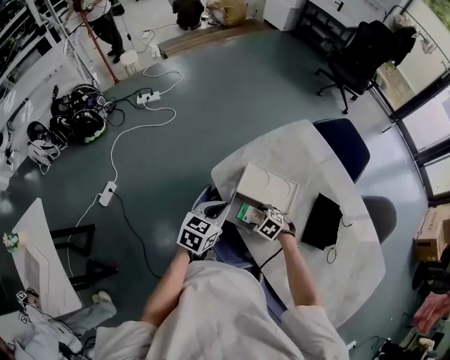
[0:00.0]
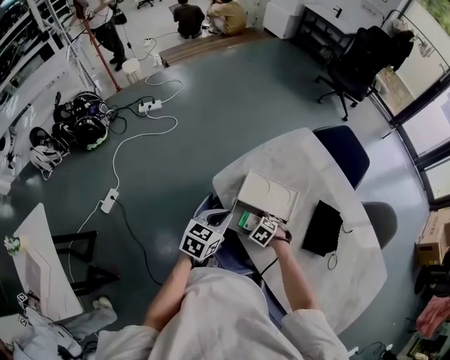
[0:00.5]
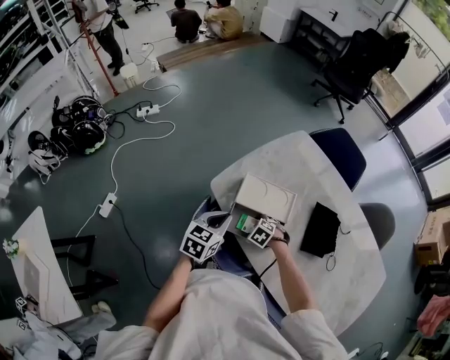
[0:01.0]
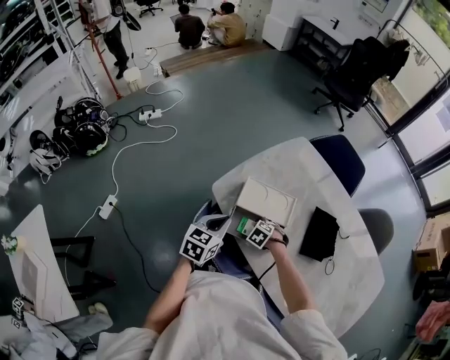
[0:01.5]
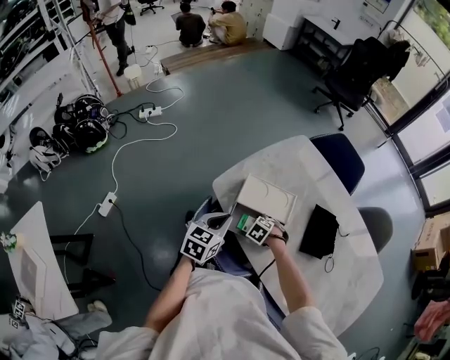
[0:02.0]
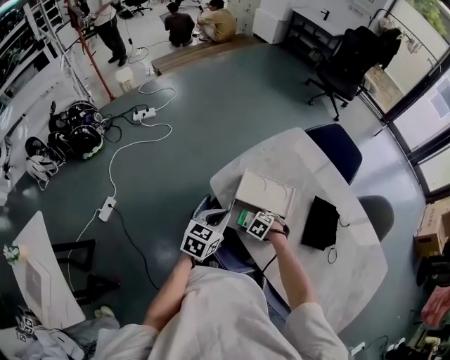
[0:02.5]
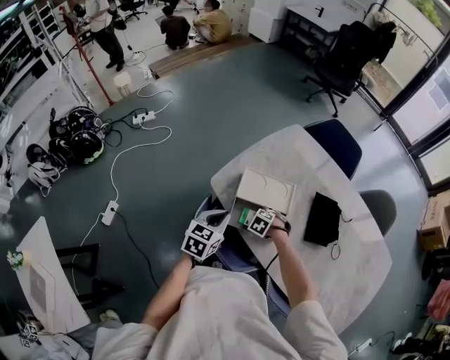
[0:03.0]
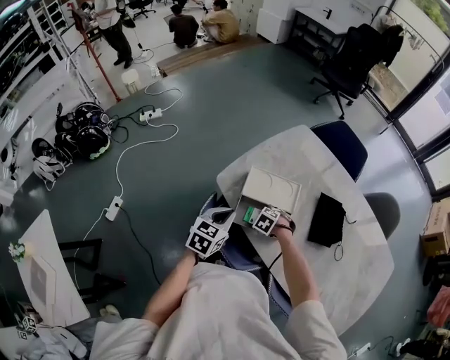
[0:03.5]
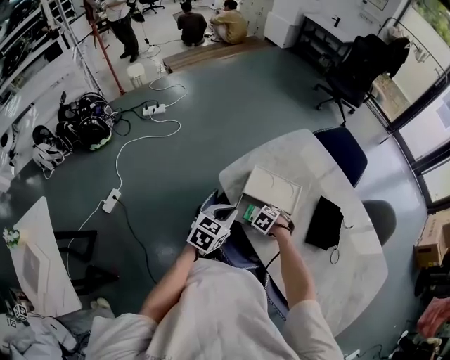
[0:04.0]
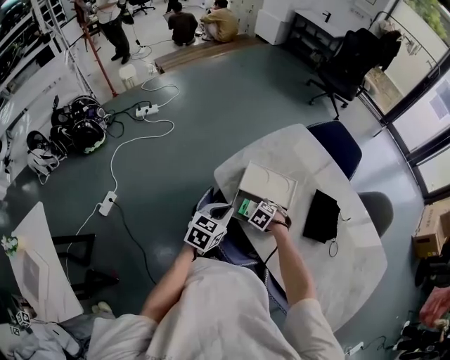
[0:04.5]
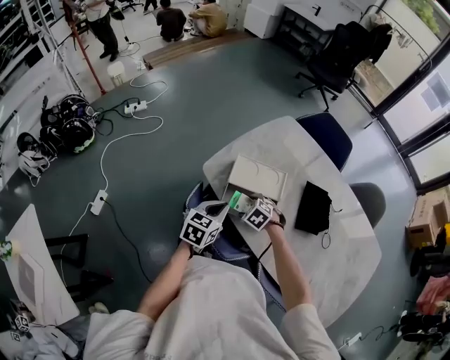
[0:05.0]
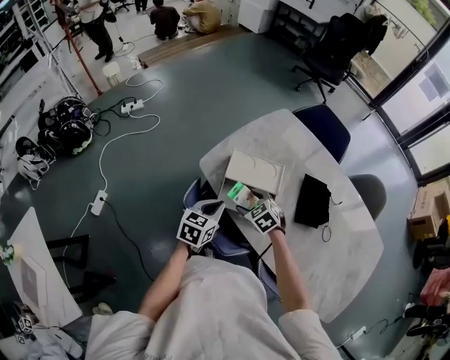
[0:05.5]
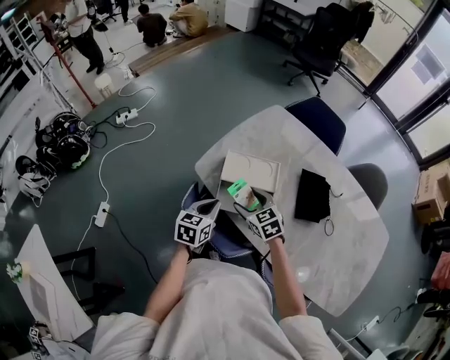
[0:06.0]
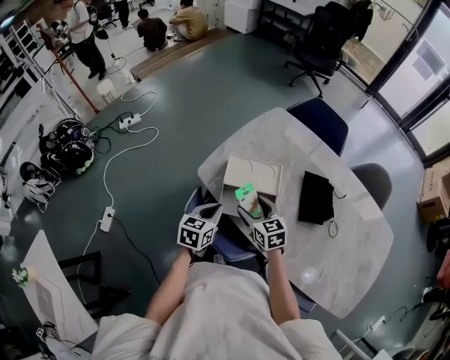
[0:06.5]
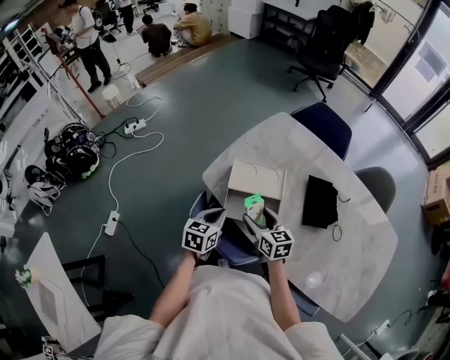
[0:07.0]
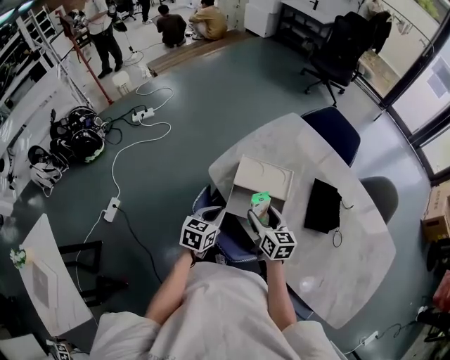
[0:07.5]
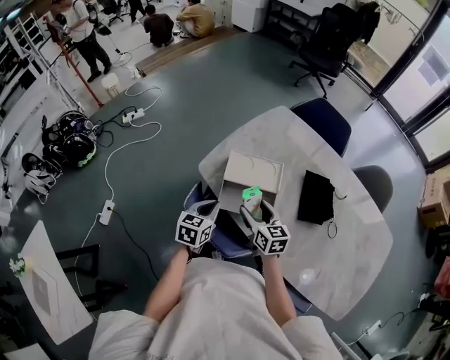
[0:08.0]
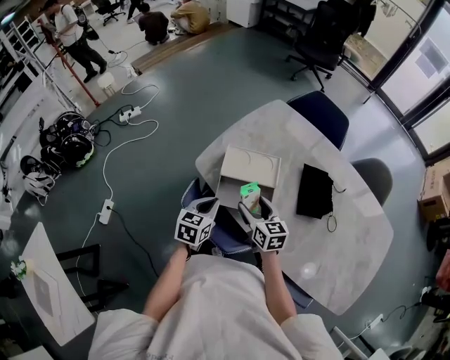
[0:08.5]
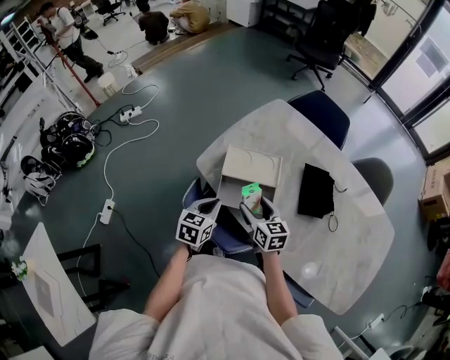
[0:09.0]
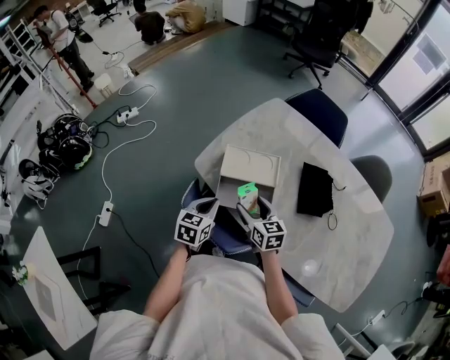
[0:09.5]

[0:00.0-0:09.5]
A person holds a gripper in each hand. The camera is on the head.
0:00.0 to 0:04.0: There are only small adjustments of the grippers.
0:04.0 to 0:05.5: The right gripper goes some 10 cm upward, and angles its fingers upward, by about 30 degrees.
0:05.5 to 0:07.5: The right gripper travels upward by some 5 cm, and tilts its fingers about 30 degrees upward.
0:07.5 to 0:09.5: There are only small adjustments of the grippers.

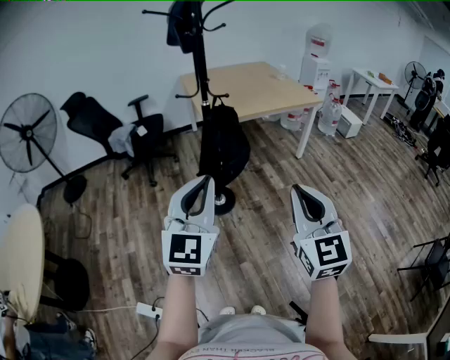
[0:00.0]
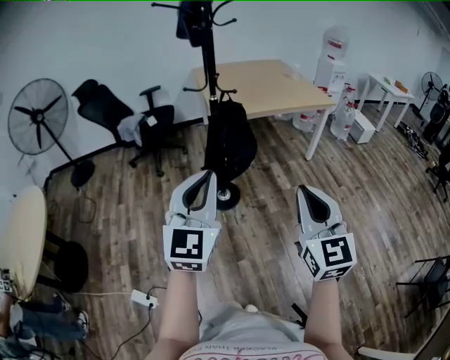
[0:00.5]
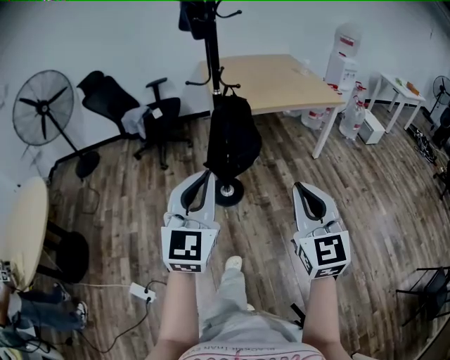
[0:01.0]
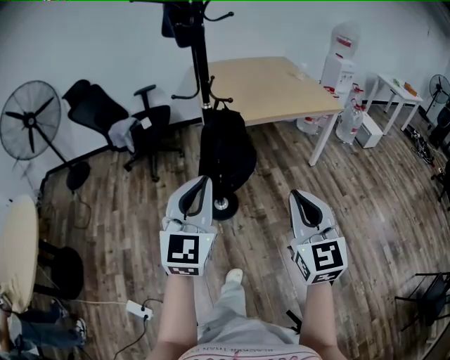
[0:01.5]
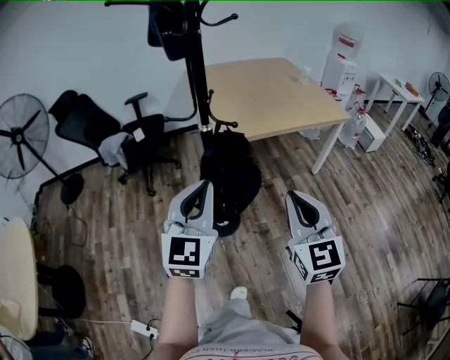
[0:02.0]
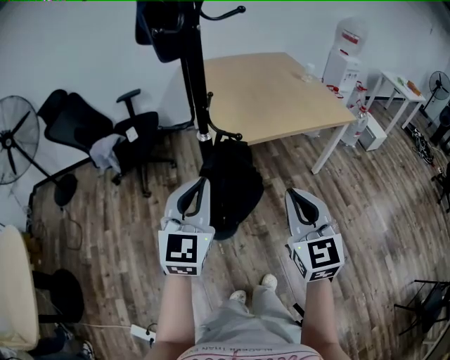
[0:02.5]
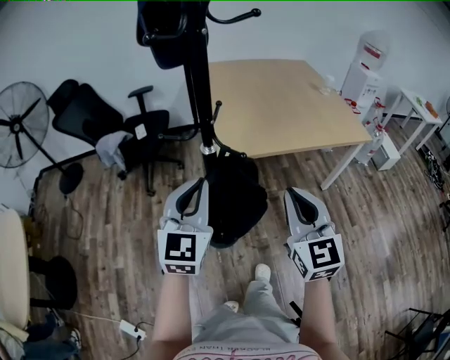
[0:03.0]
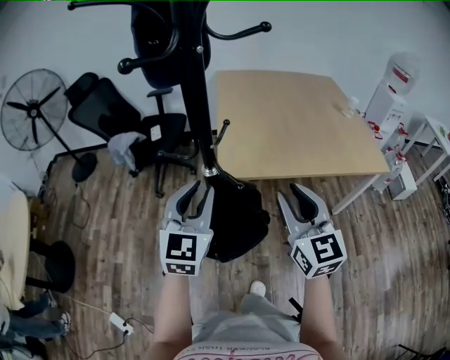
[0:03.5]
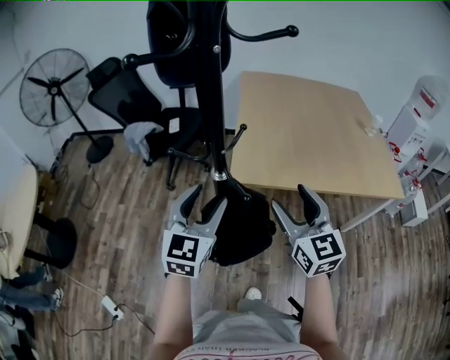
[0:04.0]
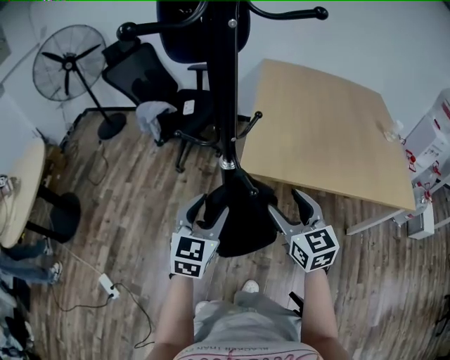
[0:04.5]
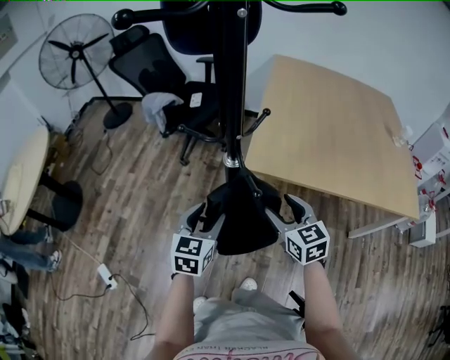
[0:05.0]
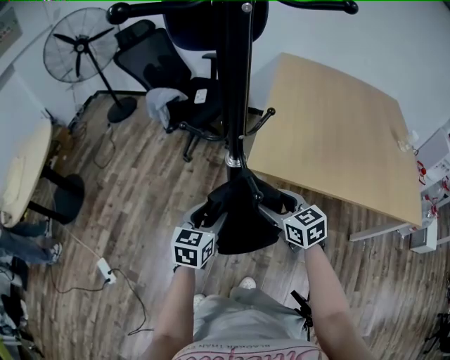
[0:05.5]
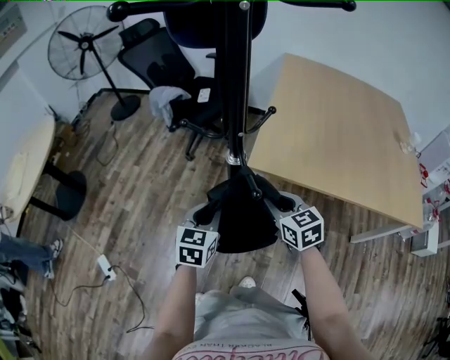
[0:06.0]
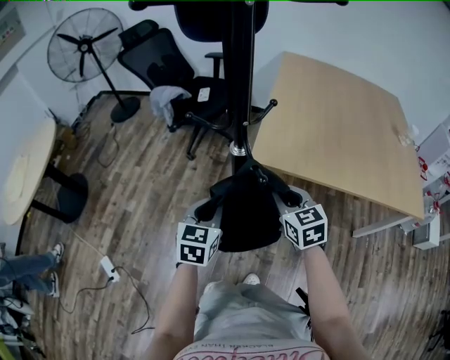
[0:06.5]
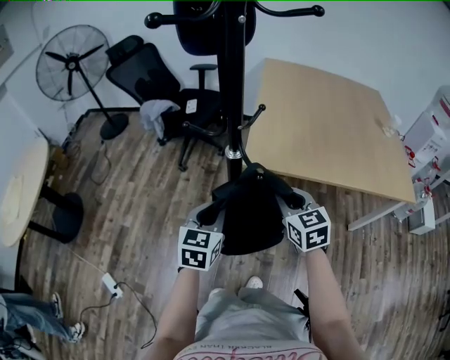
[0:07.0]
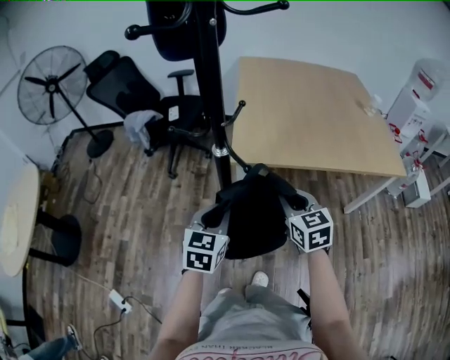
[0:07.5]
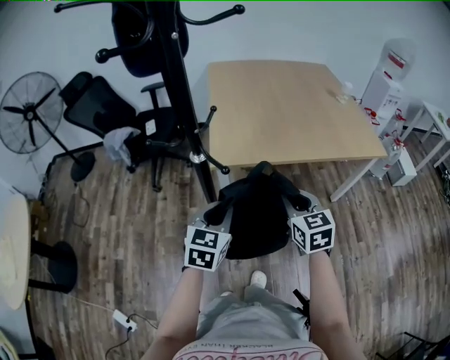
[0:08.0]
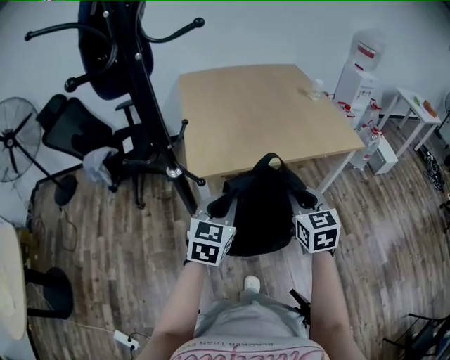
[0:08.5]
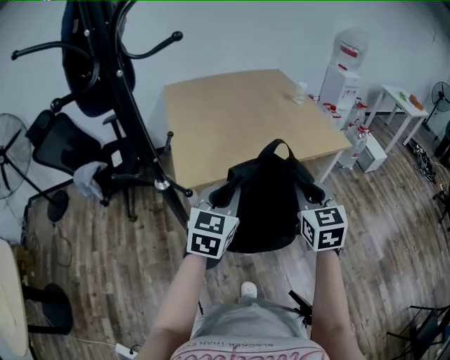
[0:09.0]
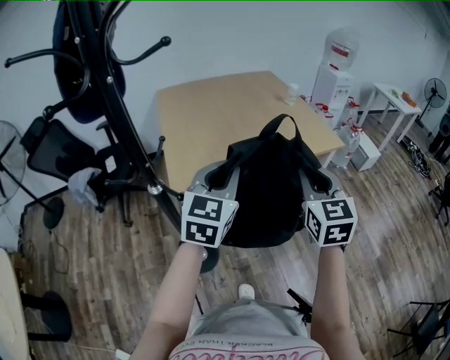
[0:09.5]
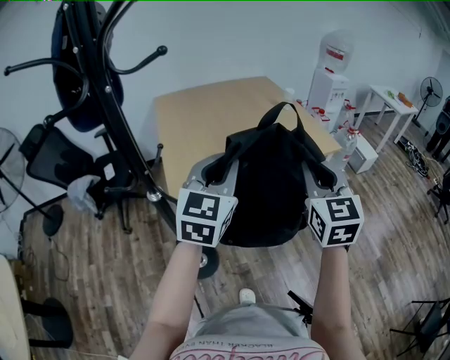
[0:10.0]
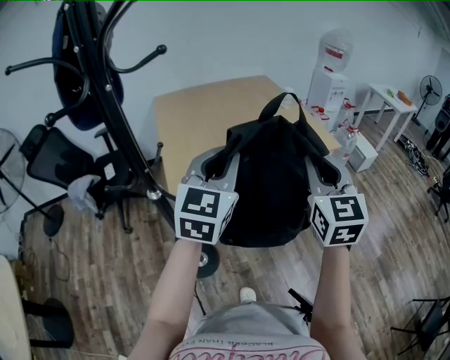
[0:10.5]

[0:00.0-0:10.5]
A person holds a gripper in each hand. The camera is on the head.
0:00.0 to 0:02.0: Both grippers travel together forward, approximately 30 cm.
0:02.0 to 0:04.0: The two grippers go roughly 25 cm forward. The left gripper turns by approximately 20 degrees, and opens. Meanwhile the right gripper changes its angle by roughly 30 degrees, and opens up.
0:04.0 to 0:06.5: Both grippers travel together downward, roughly 15 cm. The right gripper rotates roughly 30 degrees, and closes its fingers, while the left gripper changes its angle by about 30 degrees, and closes up.
0:06.5 to 0:08.5: The right gripper moves about 25 cm, and turns by some 40 degrees; the left gripper ends up about 20 cm from where it was, and turns by roughly 40 degrees.
0:08.5 to 0:10.5: The two grippers go approximately 20 cm upward. The right gripper turns by approximately 20 degrees, while the left gripper turns by about 20 degrees.

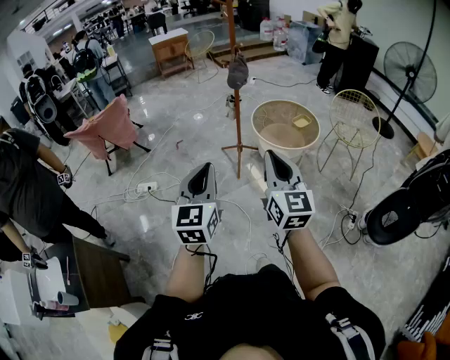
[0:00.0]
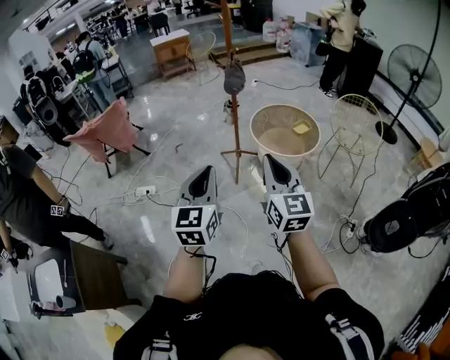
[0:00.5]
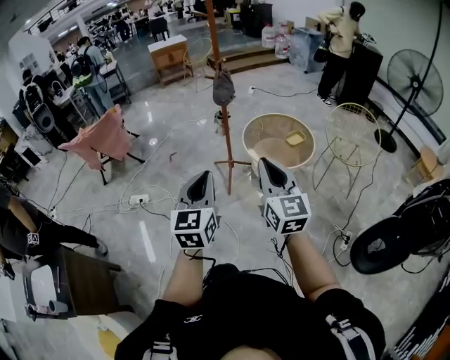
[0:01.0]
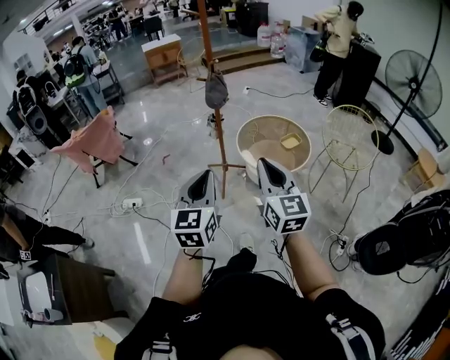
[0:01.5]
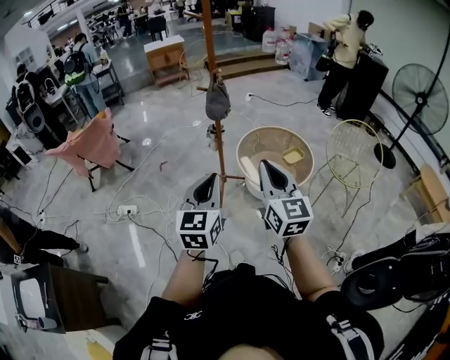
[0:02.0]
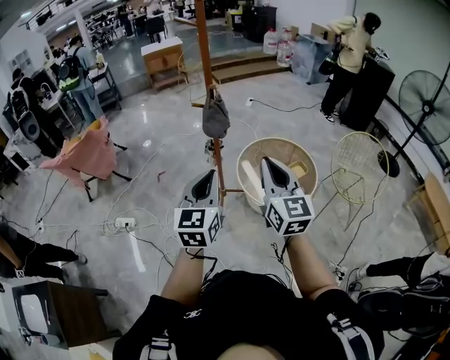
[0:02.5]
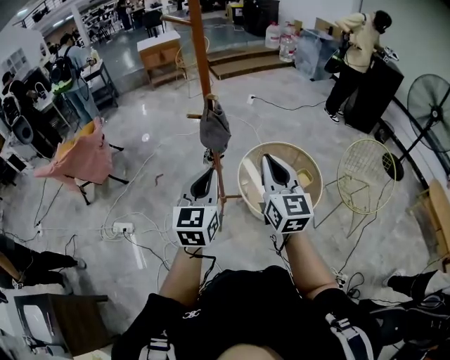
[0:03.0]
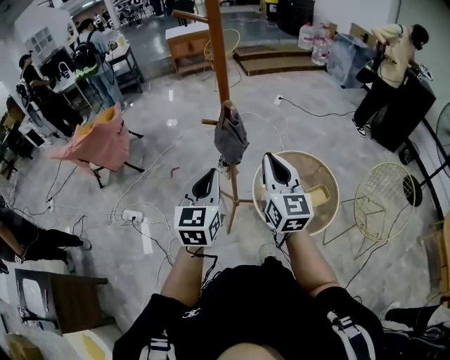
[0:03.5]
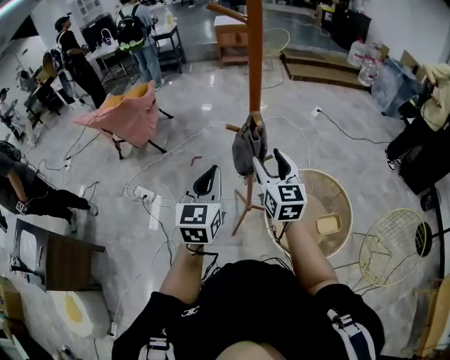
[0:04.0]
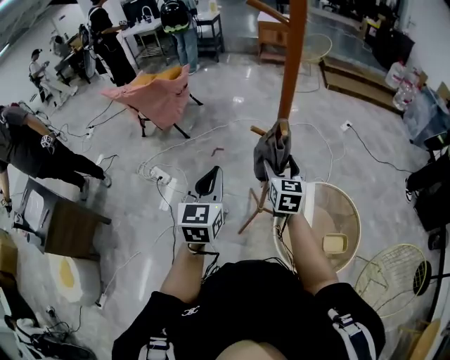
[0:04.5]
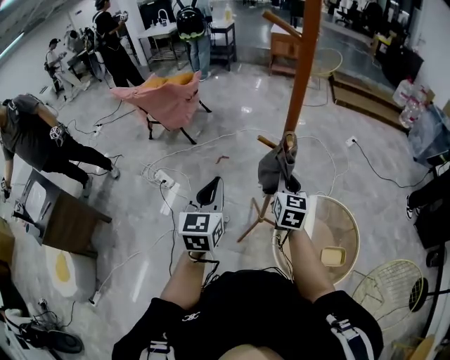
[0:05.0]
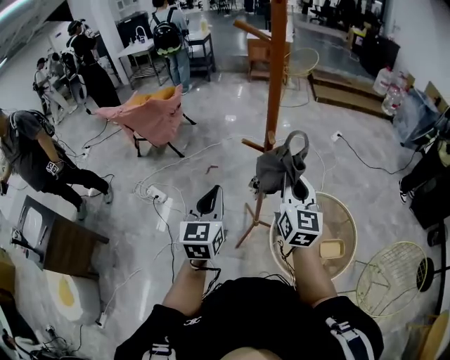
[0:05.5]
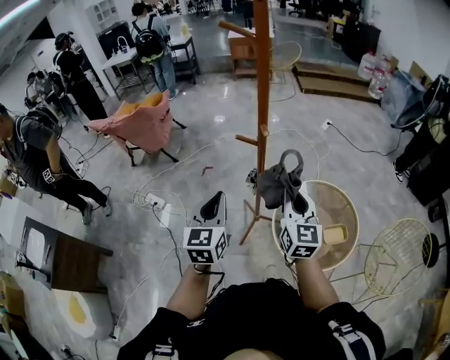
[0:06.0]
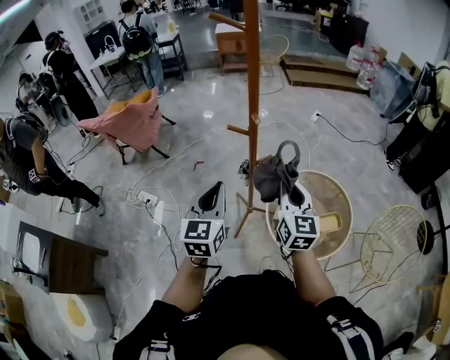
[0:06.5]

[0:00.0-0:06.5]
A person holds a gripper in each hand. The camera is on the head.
0:00.0 to 0:02.0: The two grippers travel together, forward and to the right, about 40 cm.
0:02.0 to 0:04.5: The pair of grippers is taken about 60 cm. The right gripper rotates roughly 30 degrees, and opens its fingers. Meanwhile the left gripper rotates some 40 degrees.
0:04.5 to 0:06.5: The left gripper is displaced backward and to the right by some 10 cm. The right gripper shifts roughly 20 cm backward, upward and to the right, and closes its fingers.
